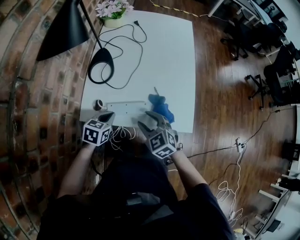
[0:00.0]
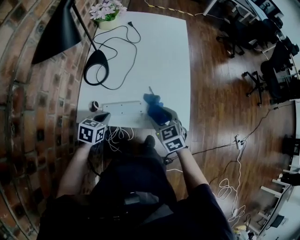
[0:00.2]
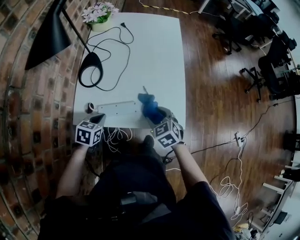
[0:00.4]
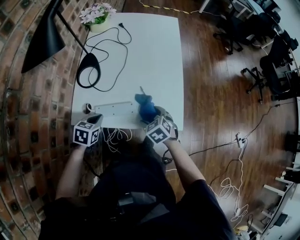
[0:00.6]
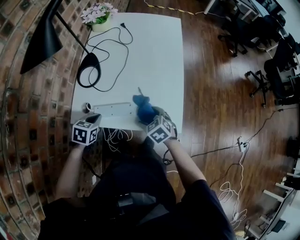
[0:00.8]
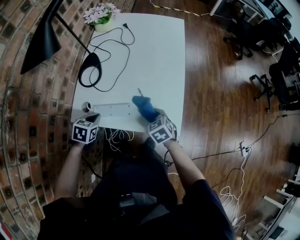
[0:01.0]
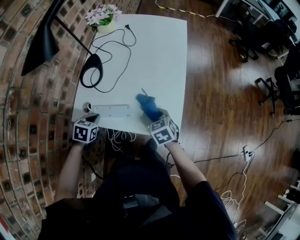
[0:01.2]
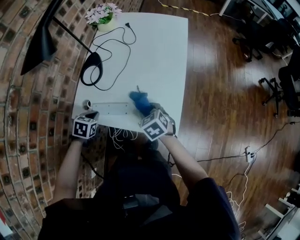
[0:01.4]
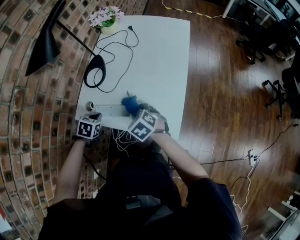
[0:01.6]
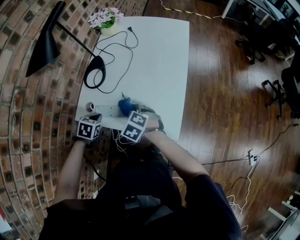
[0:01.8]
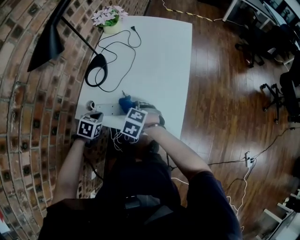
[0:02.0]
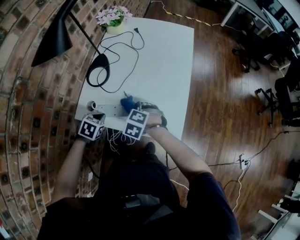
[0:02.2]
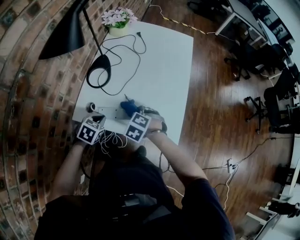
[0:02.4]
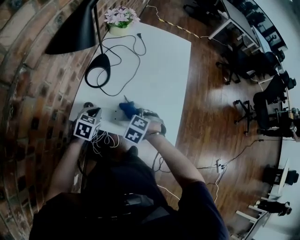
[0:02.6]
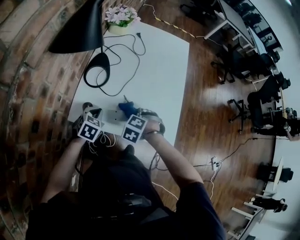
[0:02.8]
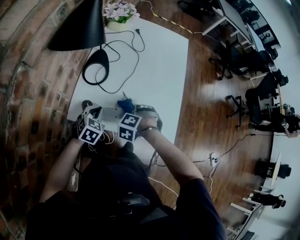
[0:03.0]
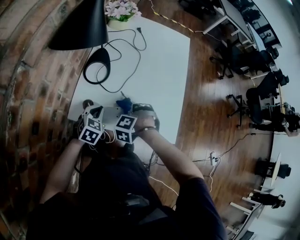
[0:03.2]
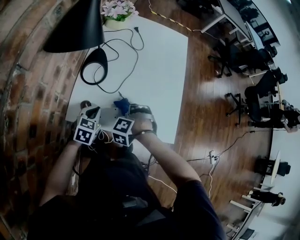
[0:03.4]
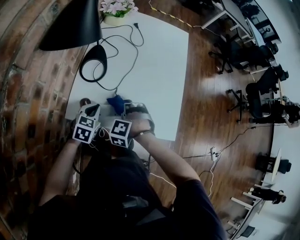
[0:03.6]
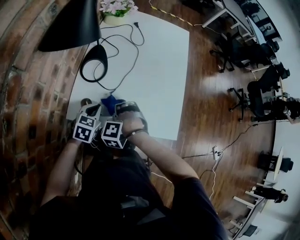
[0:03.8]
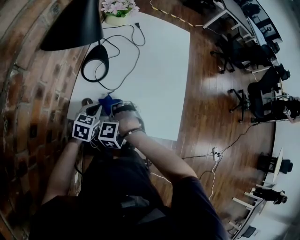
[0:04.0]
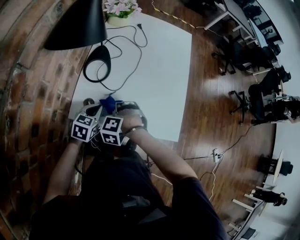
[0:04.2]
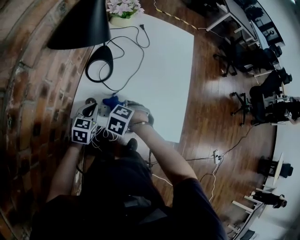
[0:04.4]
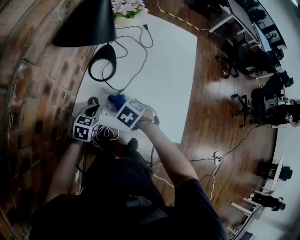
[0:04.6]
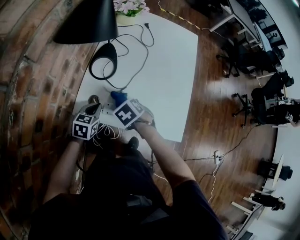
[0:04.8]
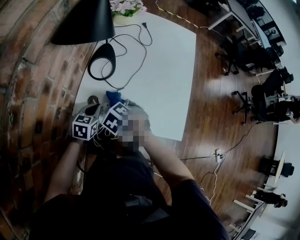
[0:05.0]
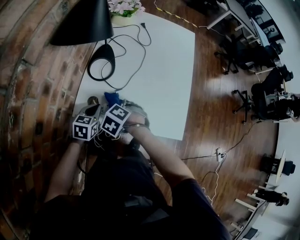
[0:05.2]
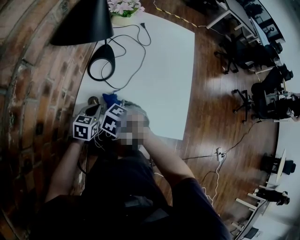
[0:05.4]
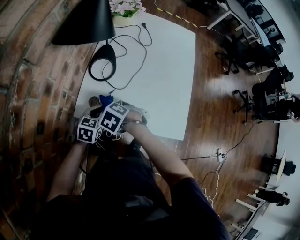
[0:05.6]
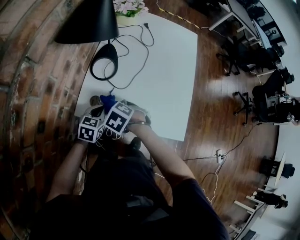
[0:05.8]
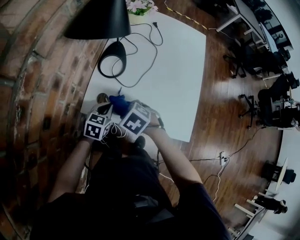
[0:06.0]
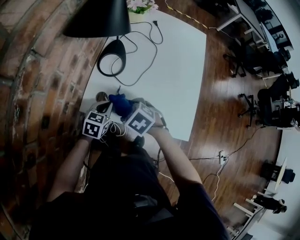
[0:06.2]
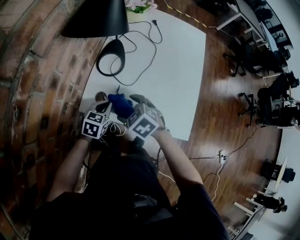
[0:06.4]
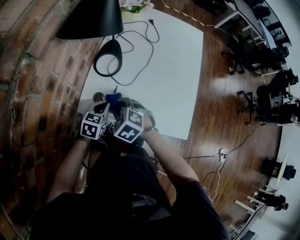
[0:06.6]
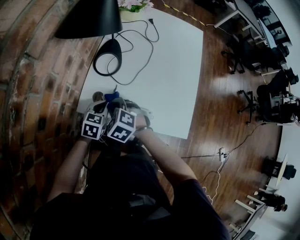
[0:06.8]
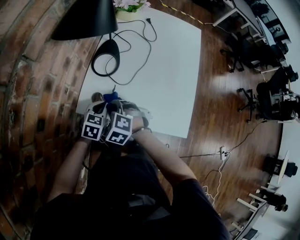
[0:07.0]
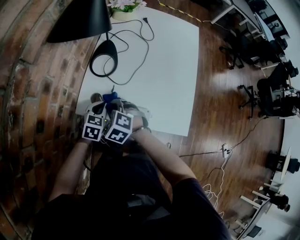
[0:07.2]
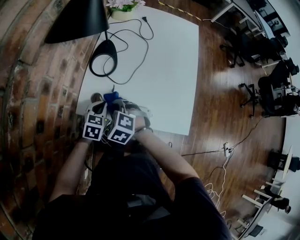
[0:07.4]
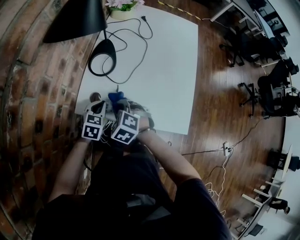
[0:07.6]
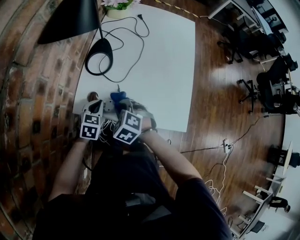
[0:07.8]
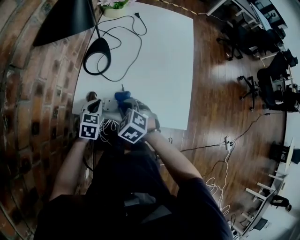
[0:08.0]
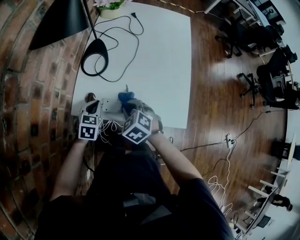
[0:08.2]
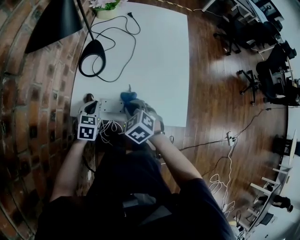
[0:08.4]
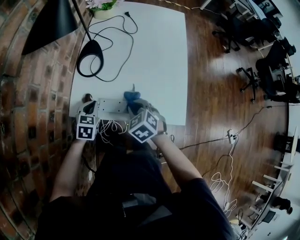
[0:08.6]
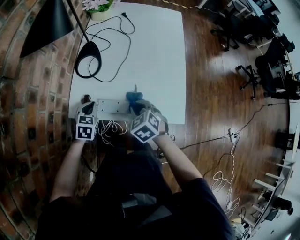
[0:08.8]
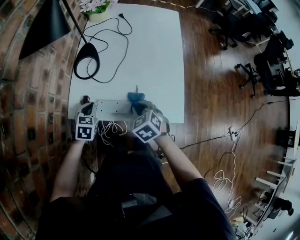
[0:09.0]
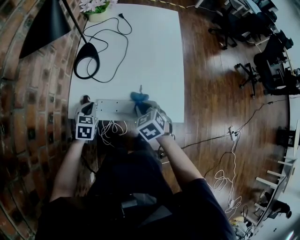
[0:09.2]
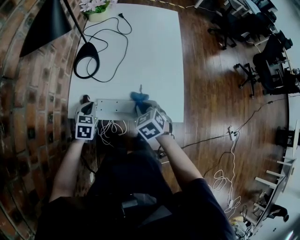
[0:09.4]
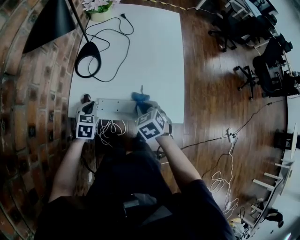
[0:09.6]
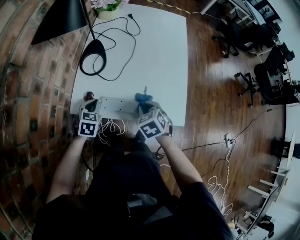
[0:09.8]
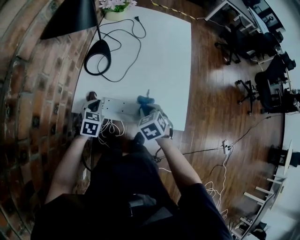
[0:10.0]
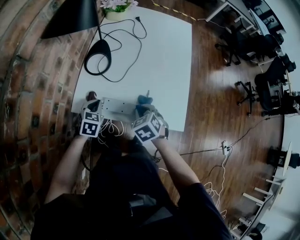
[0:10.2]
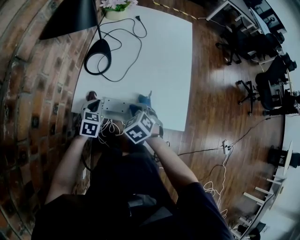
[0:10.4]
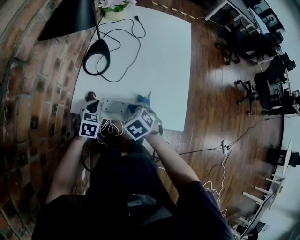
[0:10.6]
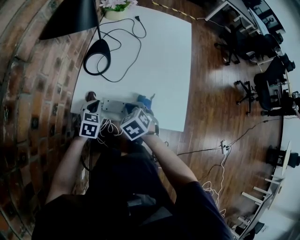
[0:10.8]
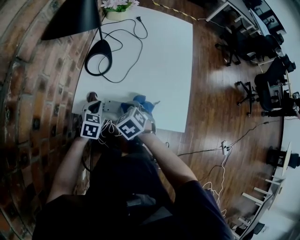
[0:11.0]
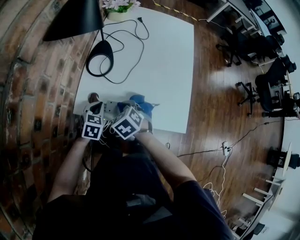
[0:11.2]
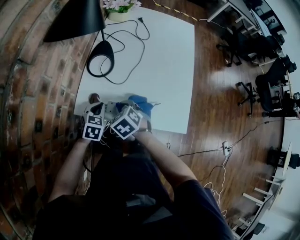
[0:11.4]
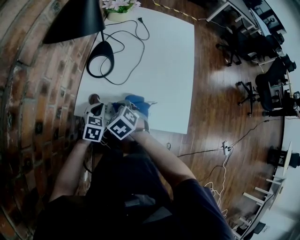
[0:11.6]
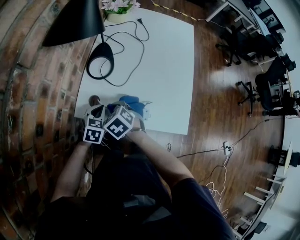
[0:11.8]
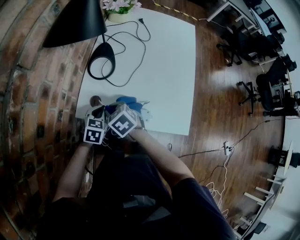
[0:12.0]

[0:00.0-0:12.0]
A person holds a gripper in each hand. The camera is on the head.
0:00.0 to 0:01.6: The left gripper swivels approximately 30 degrees. The right gripper opens and closes again.
0:01.6 to 0:03.0: The right gripper rotates approximately 50 degrees. Meanwhile the left gripper turns by some 20 degrees.
0:03.0 to 0:04.4: The right gripper moves about 10 cm.
0:04.4 to 0:06.0: The right gripper changes its angle by about 20 degrees.
0:06.0 to 0:07.6: The right gripper turns by about 20 degrees, and opens, then closes once more.
0:07.6 to 0:09.0: The right gripper shifts some 15 cm to the right, and swivels approximately 30 degrees.
0:09.0 to 0:10.4: There are only small adjustments of the grippers.
0:10.4 to 0:12.0: The right gripper moves to the left, some 15 cm.

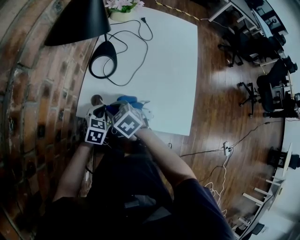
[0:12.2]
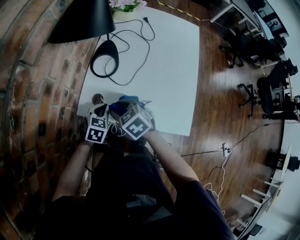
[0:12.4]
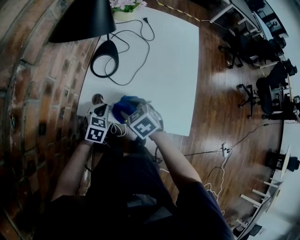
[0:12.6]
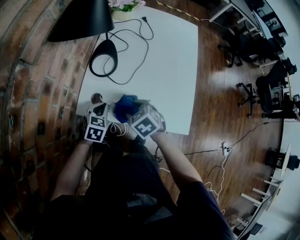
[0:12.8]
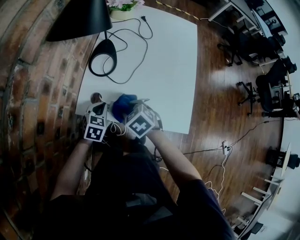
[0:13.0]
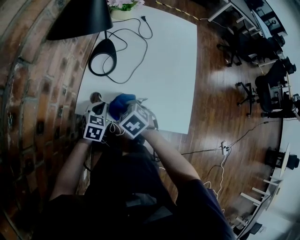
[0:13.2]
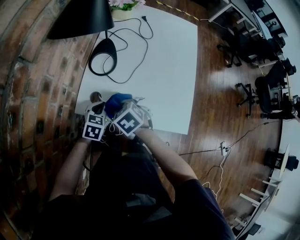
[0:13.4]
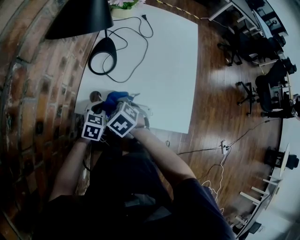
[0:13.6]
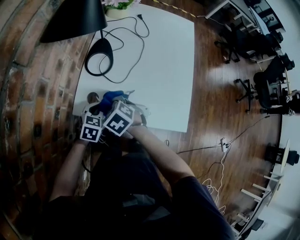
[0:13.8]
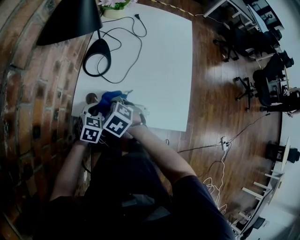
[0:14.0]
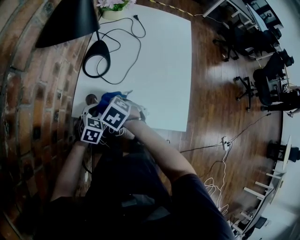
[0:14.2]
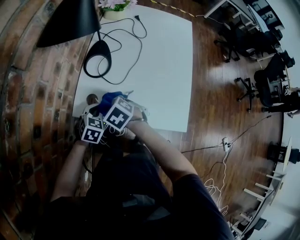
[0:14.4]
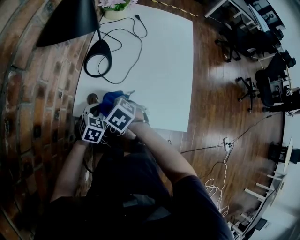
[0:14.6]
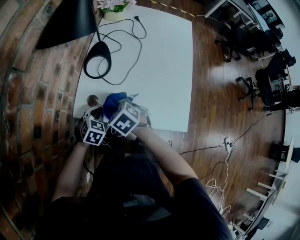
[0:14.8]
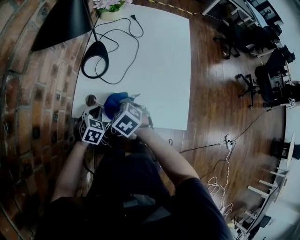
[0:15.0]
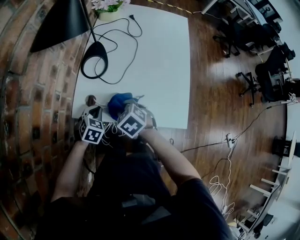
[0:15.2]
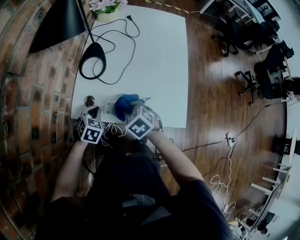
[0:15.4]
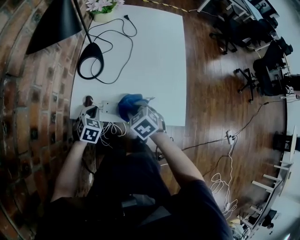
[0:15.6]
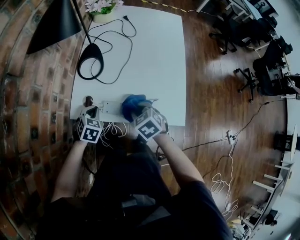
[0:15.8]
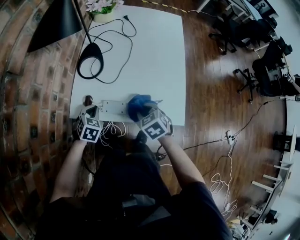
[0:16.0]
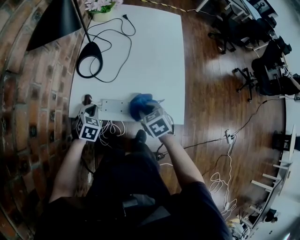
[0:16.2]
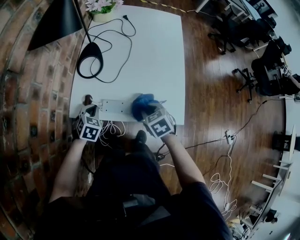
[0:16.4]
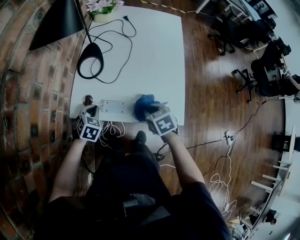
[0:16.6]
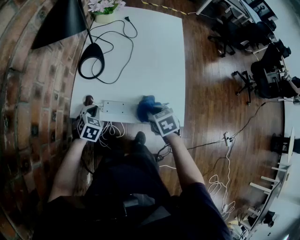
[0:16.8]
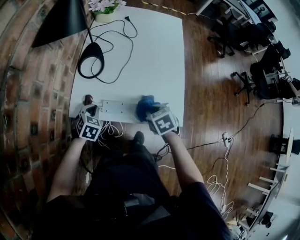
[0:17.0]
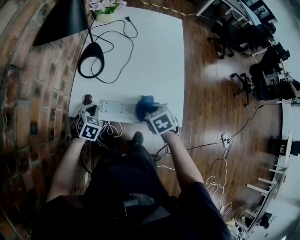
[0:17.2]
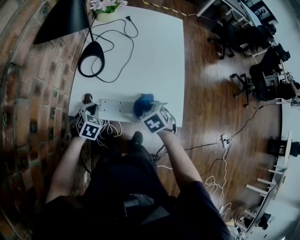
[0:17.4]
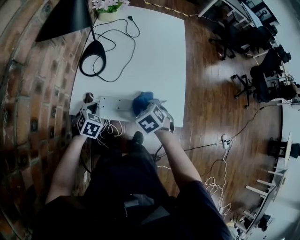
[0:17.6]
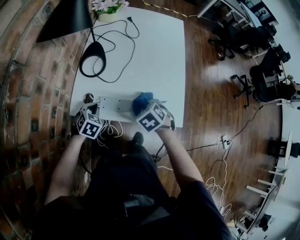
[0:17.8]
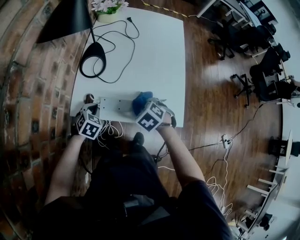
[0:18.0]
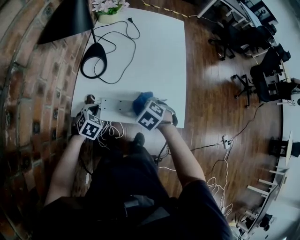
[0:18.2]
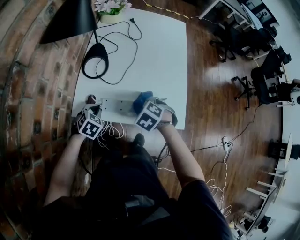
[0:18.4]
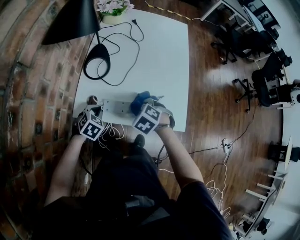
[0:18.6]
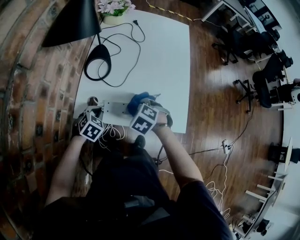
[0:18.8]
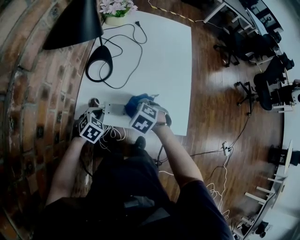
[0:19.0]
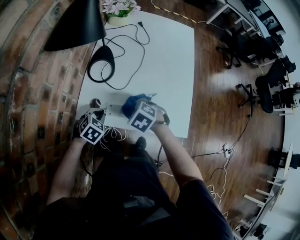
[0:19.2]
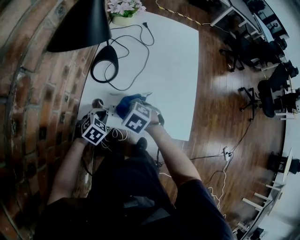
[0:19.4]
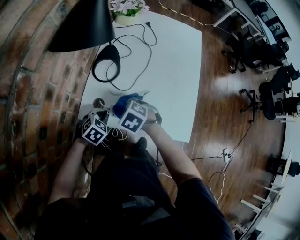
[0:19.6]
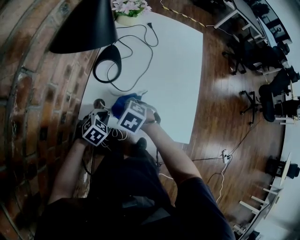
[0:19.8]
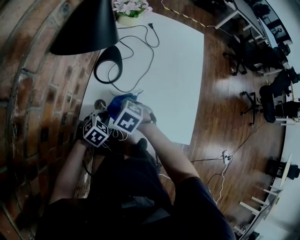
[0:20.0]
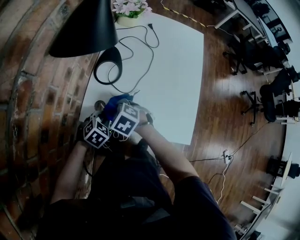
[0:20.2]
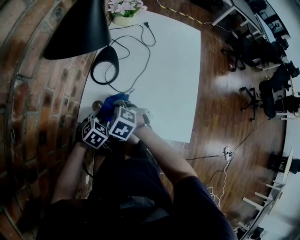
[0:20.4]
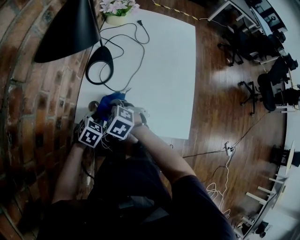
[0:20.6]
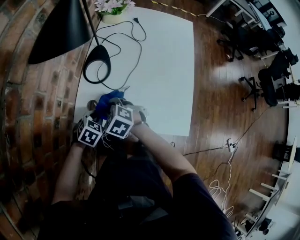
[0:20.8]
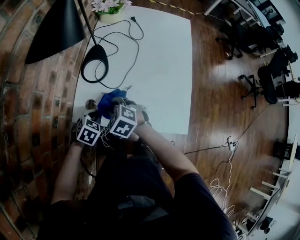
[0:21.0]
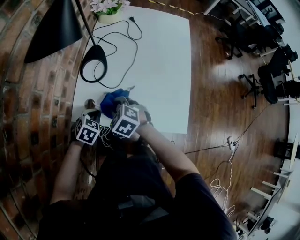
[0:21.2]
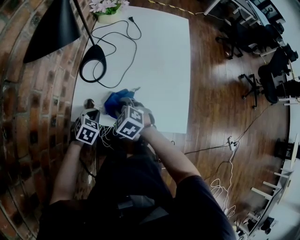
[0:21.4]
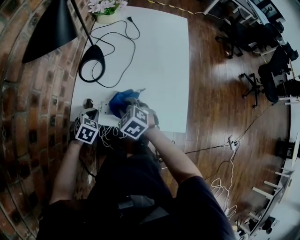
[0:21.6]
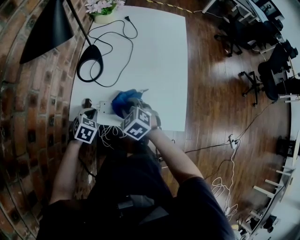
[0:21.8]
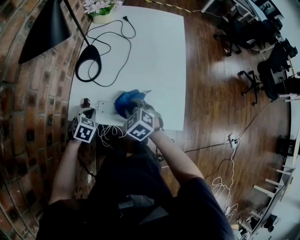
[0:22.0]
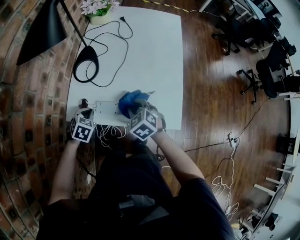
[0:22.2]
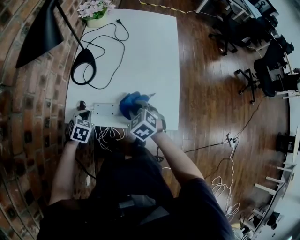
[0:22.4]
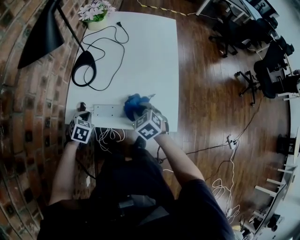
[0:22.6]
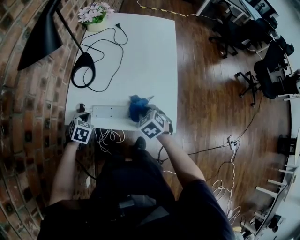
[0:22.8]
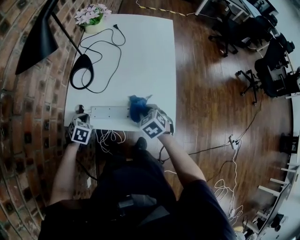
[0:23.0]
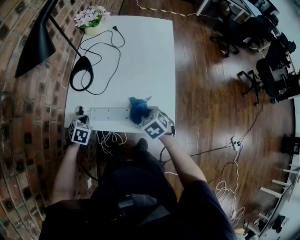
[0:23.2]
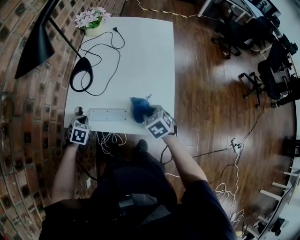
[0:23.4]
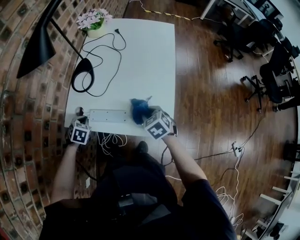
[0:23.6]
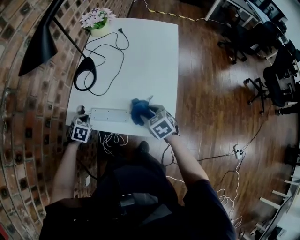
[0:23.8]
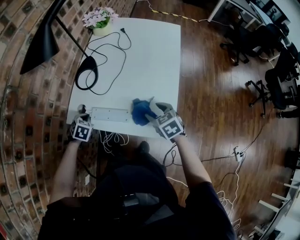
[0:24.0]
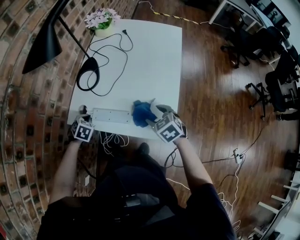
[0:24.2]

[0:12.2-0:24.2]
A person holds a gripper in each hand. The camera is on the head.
0:12.2 to 0:13.8: The right gripper reaches roughly 10 cm to the right, then returns.
0:13.8 to 0:15.2: The right gripper moves to the right, approximately 5 cm.
0:15.2 to 0:16.6: The right gripper moves to the right, about 15 cm, and rotates roughly 20 degrees.
0:16.6 to 0:18.2: The right gripper changes its angle by approximately 30 degrees.
0:18.2 to 0:19.8: The right gripper goes about 15 cm to the left.
0:19.8 to 0:21.2: The grippers make only small movements.
0:21.2 to 0:22.6: The right gripper shifts about 15 cm to the right, and turns by roughly 20 degrees.
0:22.6 to 0:24.2: The right gripper travels to the right by approximately 10 cm, and opens up.
